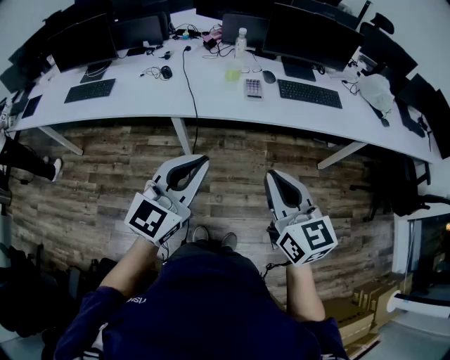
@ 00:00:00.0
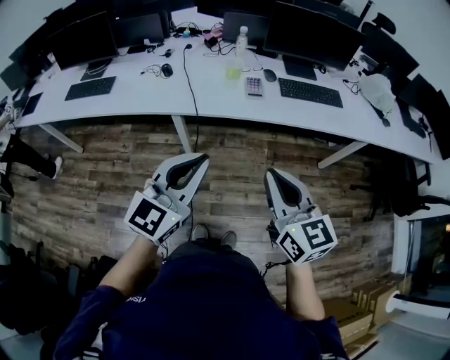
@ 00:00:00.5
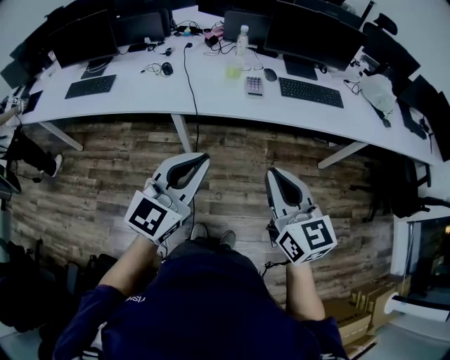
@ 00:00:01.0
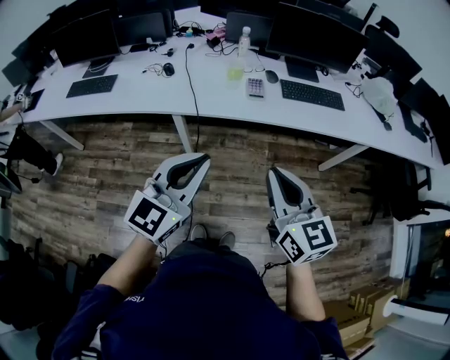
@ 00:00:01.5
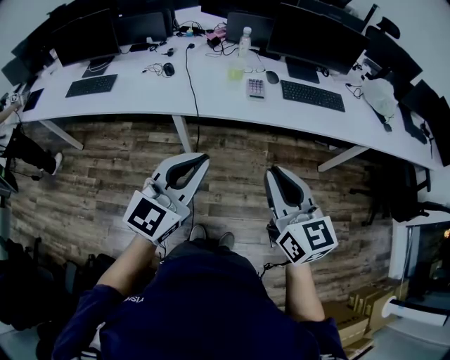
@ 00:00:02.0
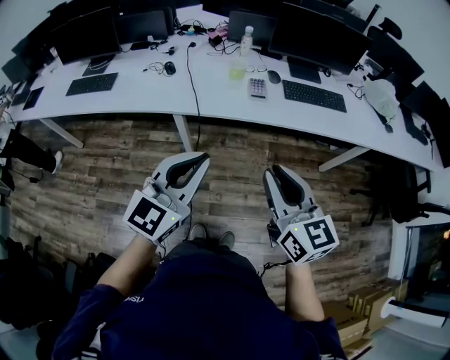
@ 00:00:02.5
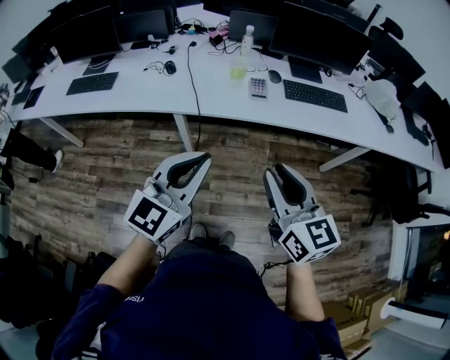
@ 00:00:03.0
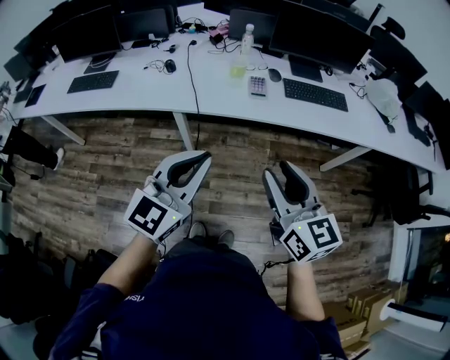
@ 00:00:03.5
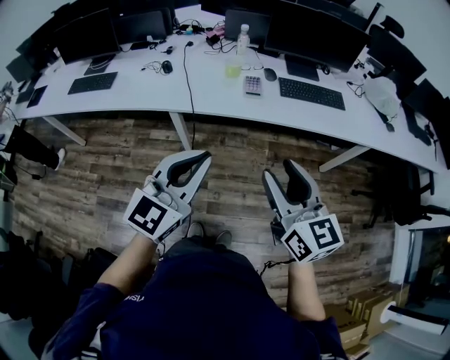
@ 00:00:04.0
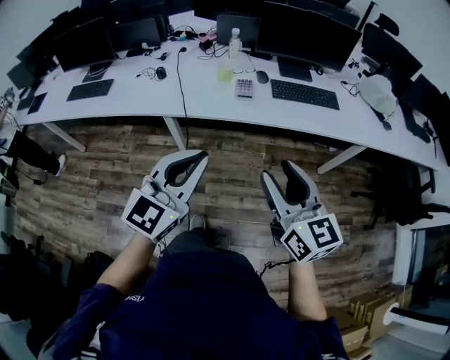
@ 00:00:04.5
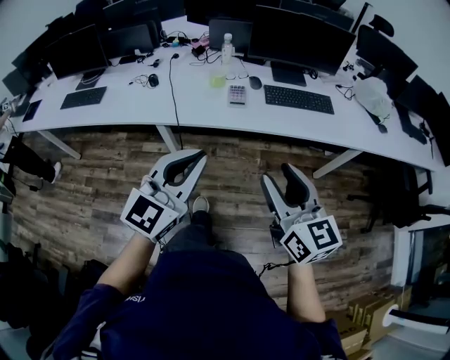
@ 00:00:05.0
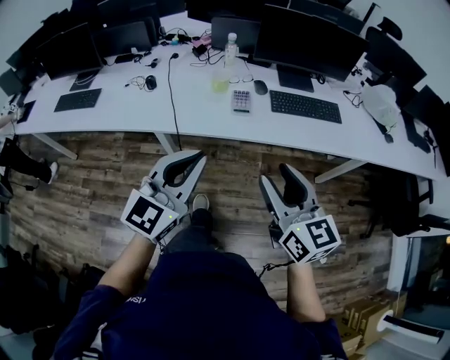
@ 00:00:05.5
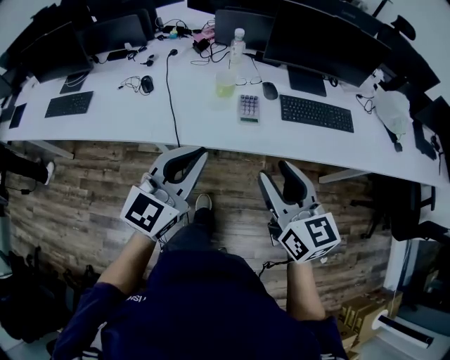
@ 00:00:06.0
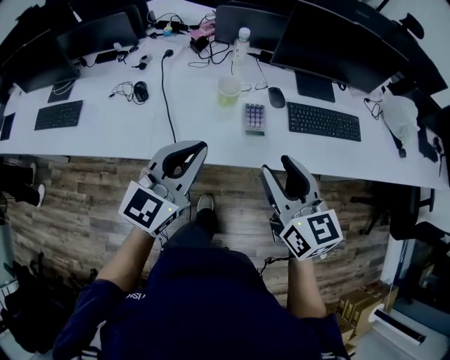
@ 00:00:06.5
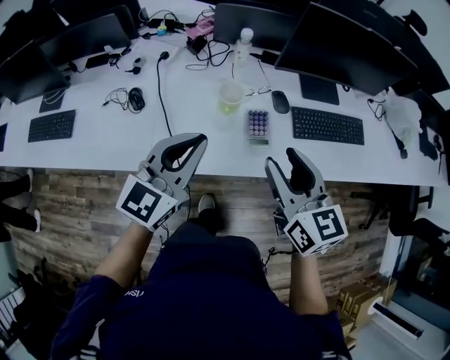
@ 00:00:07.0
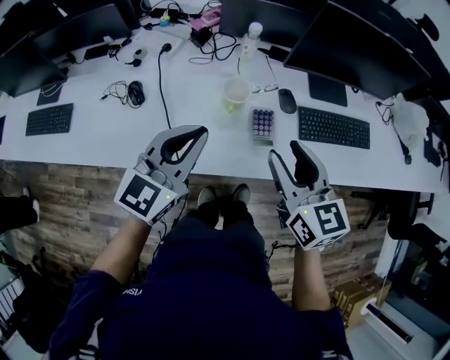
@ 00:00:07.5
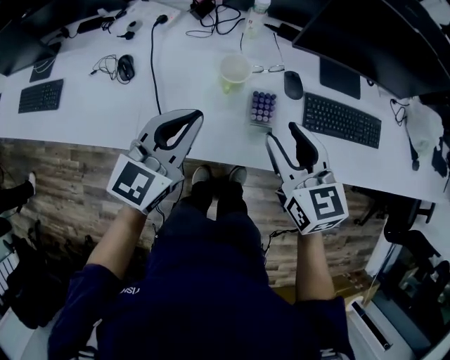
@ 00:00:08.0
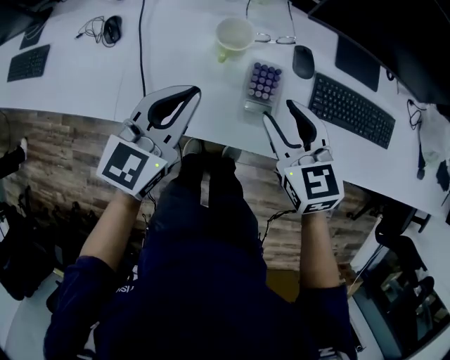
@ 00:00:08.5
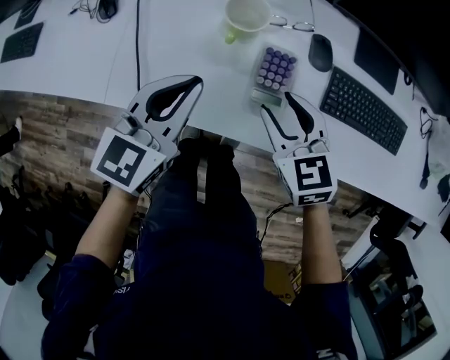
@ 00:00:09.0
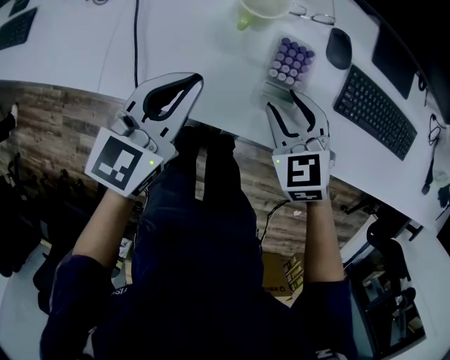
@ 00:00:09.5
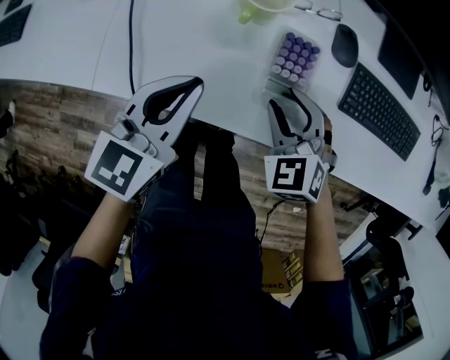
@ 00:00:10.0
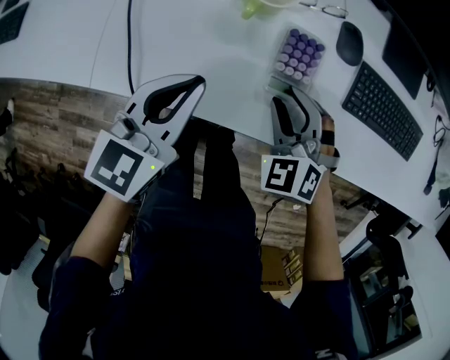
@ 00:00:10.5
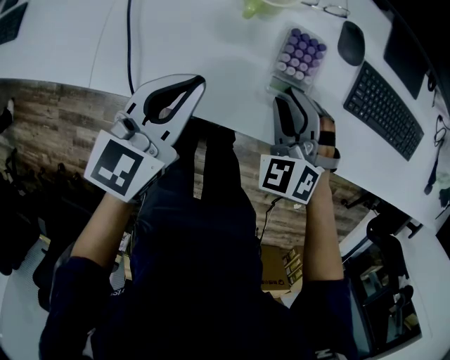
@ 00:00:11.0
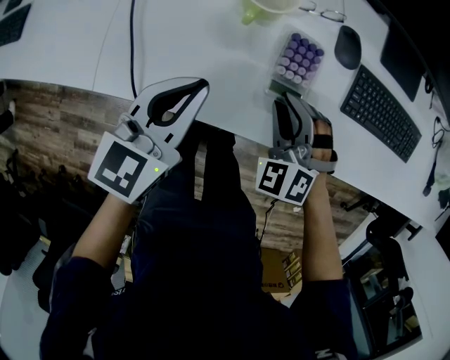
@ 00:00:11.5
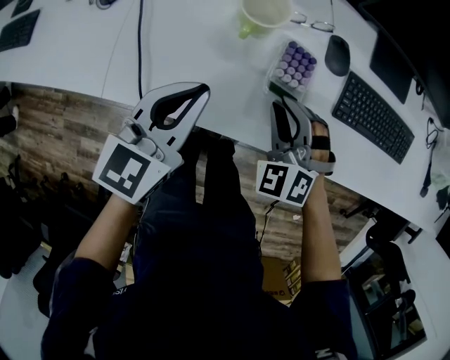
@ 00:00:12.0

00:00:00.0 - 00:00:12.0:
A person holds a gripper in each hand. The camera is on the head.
00:00:00.0 - 00:00:02.0: The grippers stay close to where they were, moving slightly.
00:00:02.0 - 00:00:04.0: The right gripper opens up.
00:00:04.0 - 00:00:06.0: The two grippers go roughly 20 cm forward.
00:00:06.0 - 00:00:08.0: The two grippers go about 25 cm forward and downward.
00:00:08.0 - 00:00:10.0: The grippers both shift downward by about 20 cm. The right gripper rolls counterclockwise, seen from behind, by about 40 degrees.
00:00:10.0 - 00:00:12.0: The right gripper closes its fingers.

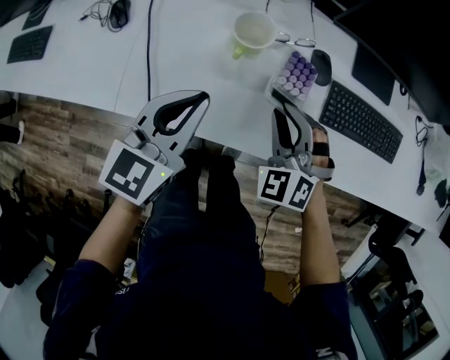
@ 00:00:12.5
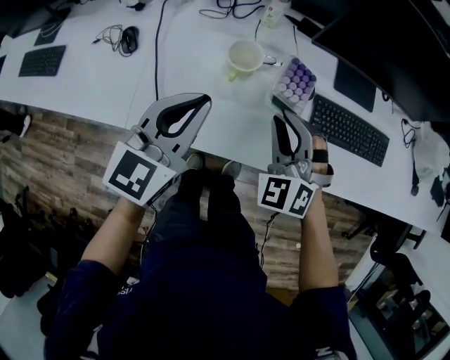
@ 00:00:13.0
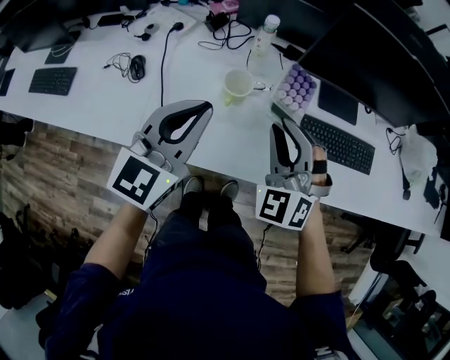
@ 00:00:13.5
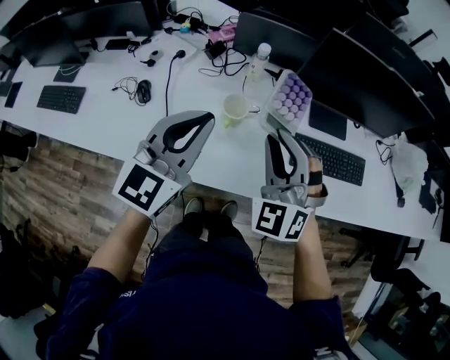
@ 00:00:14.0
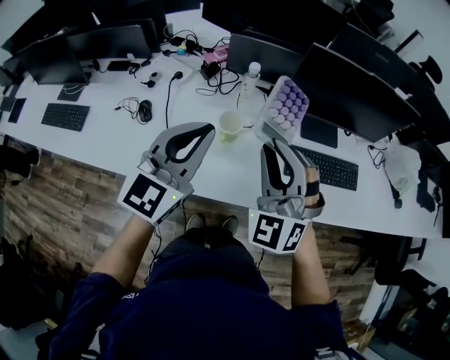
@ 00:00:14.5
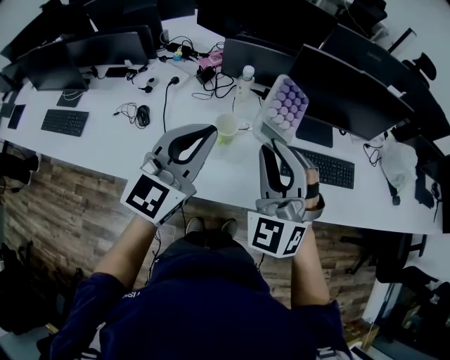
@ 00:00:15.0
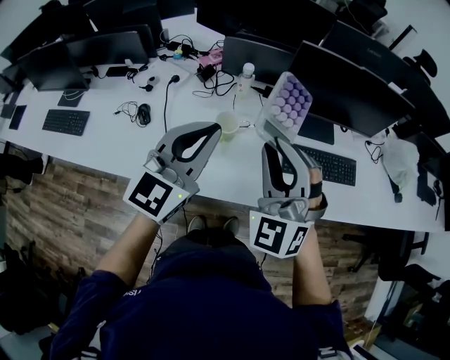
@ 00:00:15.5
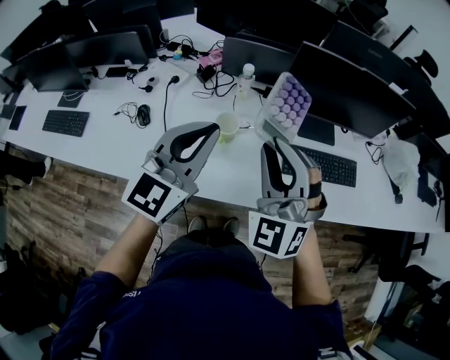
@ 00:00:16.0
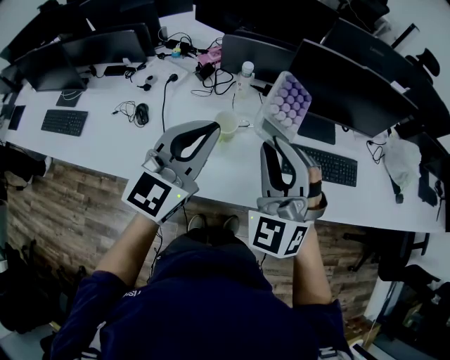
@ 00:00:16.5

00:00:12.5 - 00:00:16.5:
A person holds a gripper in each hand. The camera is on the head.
00:00:12.5 - 00:00:14.5: The grippers both shift upward by some 25 cm. The left gripper turns by some 20 degrees; the right gripper swivels some 30 degrees.
00:00:14.5 - 00:00:16.5: The grippers move only a little.

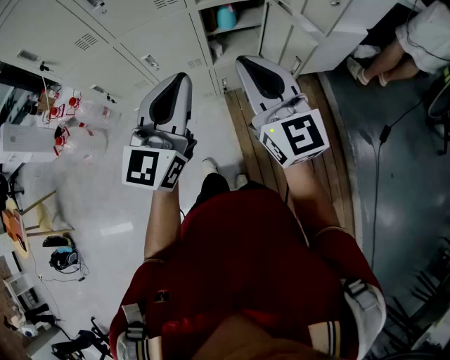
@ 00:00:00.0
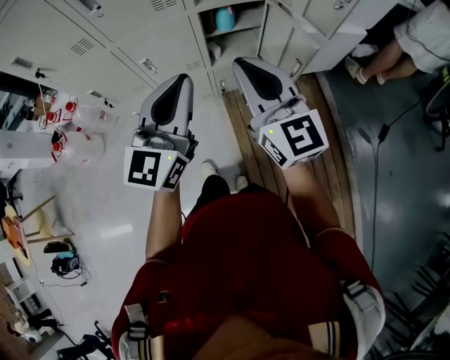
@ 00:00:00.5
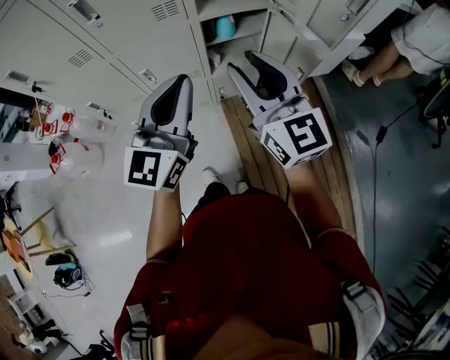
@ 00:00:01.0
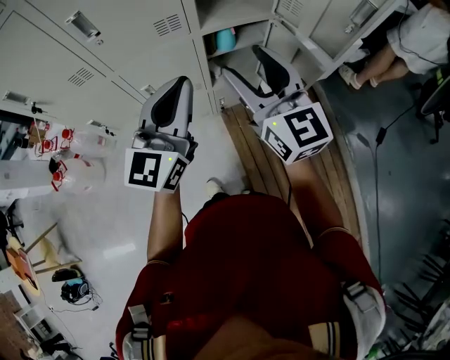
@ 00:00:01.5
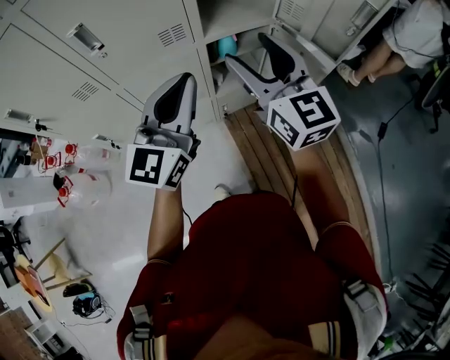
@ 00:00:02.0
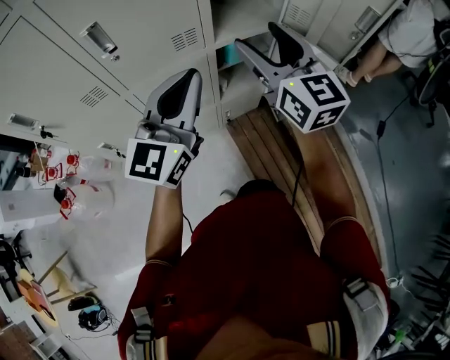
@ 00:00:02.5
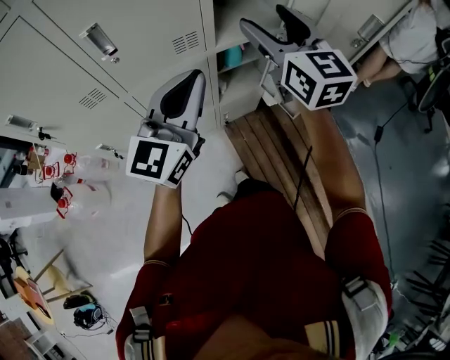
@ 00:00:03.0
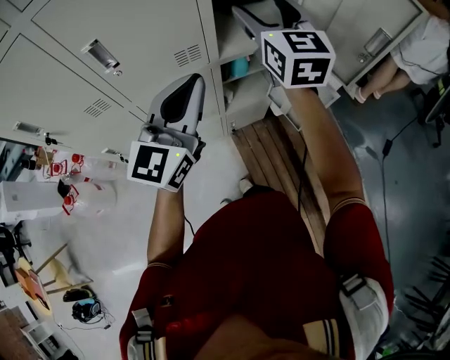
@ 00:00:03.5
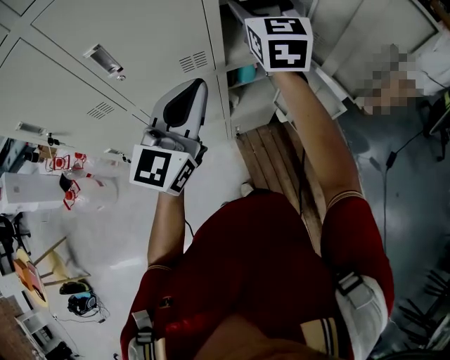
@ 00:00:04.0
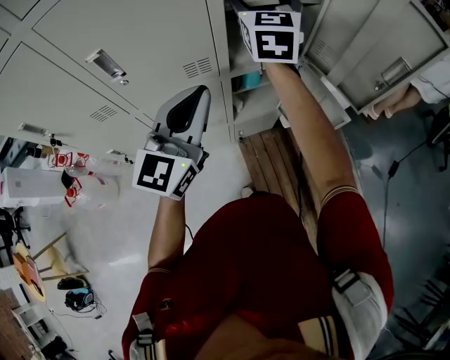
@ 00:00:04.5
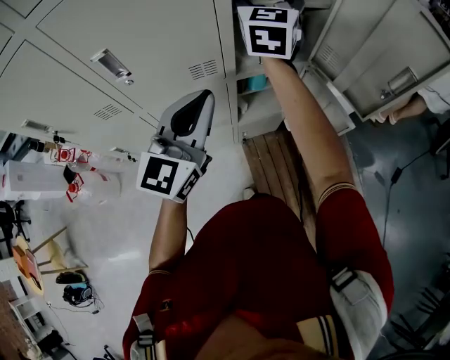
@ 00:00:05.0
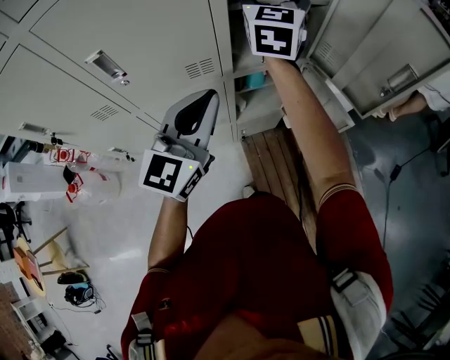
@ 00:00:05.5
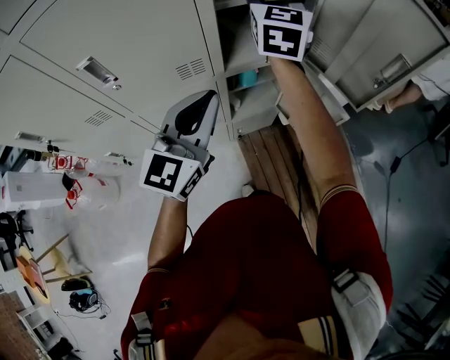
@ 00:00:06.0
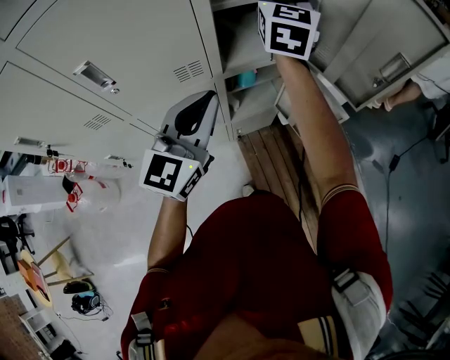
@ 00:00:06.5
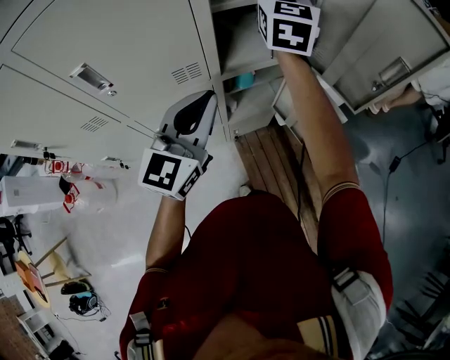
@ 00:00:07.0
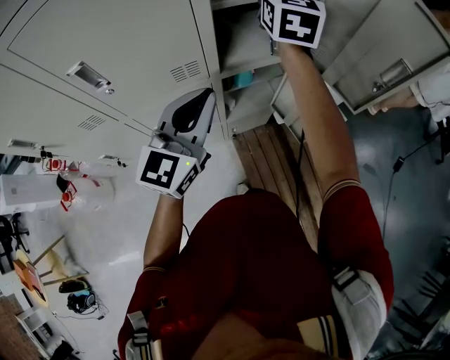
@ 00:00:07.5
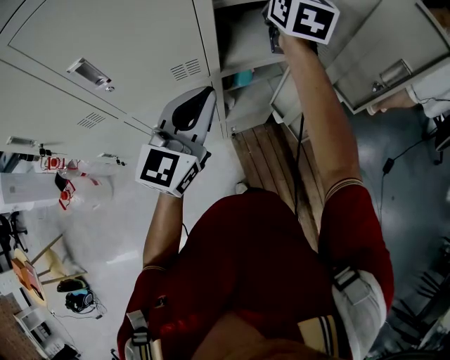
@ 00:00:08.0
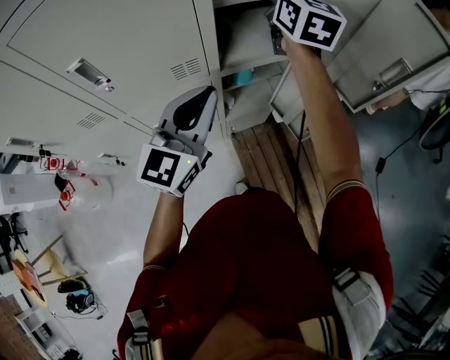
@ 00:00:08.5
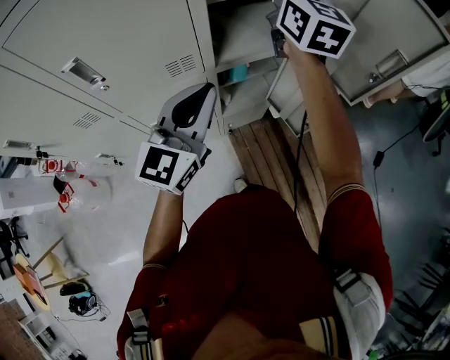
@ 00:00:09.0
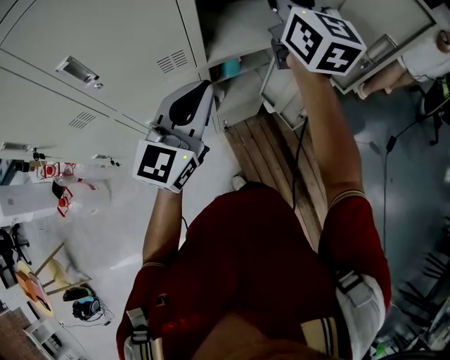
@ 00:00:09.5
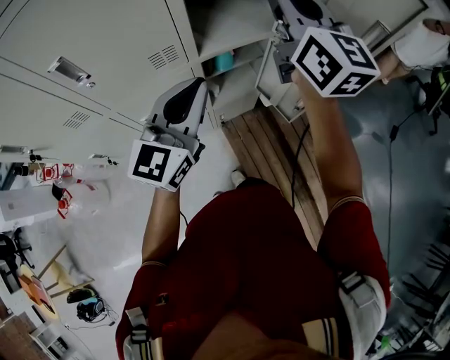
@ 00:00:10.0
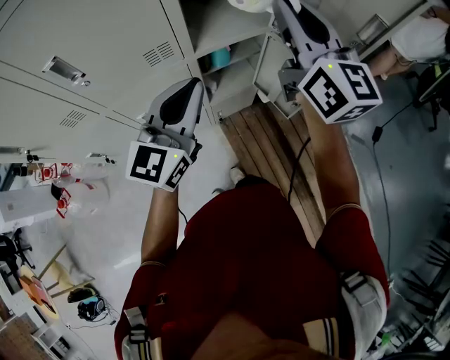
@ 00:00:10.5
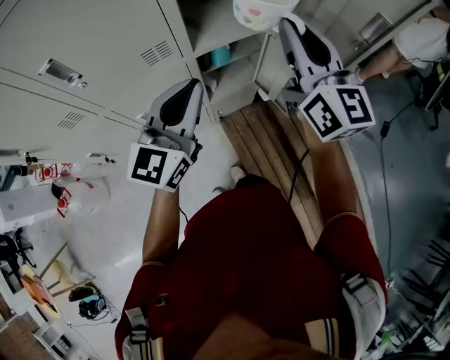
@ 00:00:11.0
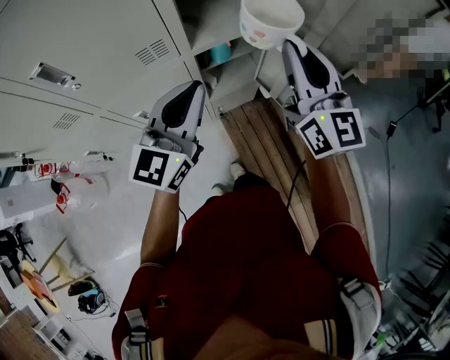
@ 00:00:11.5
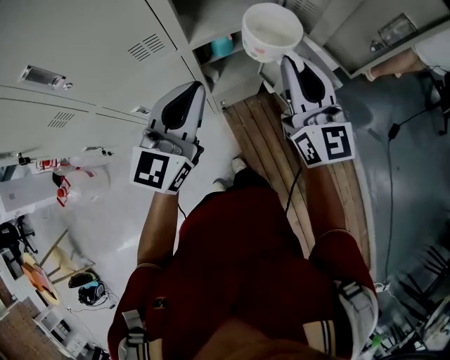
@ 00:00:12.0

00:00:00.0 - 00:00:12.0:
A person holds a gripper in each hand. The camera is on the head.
00:00:00.0 - 00:00:02.0: The left gripper shifts some 15 cm forward and to the left. The right gripper goes about 15 cm forward, and opens.
00:00:02.0 - 00:00:04.0: The left gripper moves forward, about 5 cm, while the right gripper shifts roughly 20 cm forward.
00:00:04.0 - 00:00:06.0: The right gripper goes approximately 5 cm forward.
00:00:06.0 - 00:00:08.0: The right gripper closes up.
00:00:08.0 - 00:00:10.0: The right gripper is displaced backward by some 15 cm.
00:00:10.0 - 00:00:12.0: The right gripper is displaced downward by about 20 cm. Meanwhile the left gripper goes roughly 5 cm downward.
